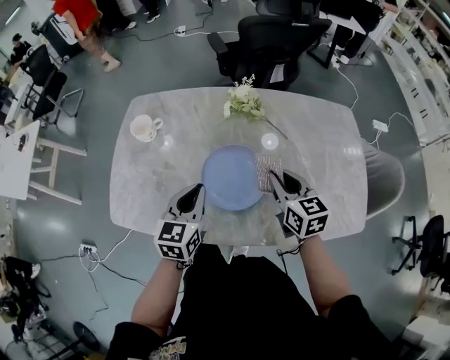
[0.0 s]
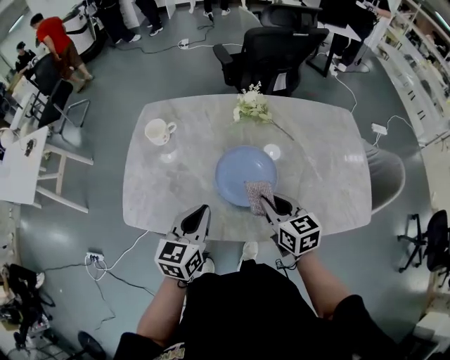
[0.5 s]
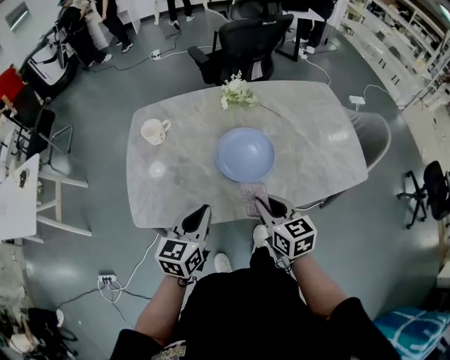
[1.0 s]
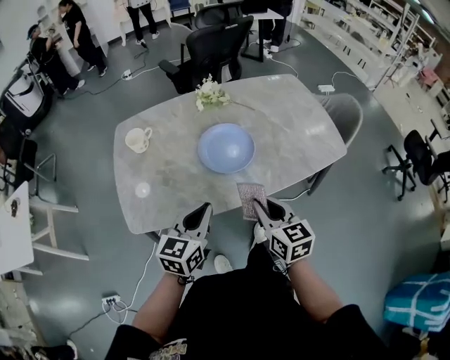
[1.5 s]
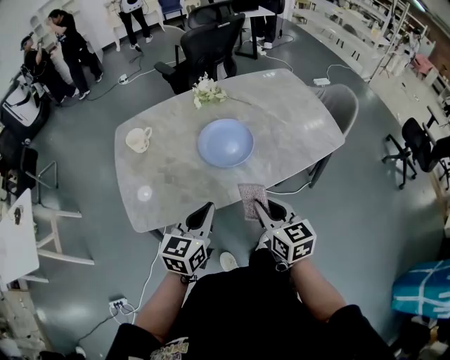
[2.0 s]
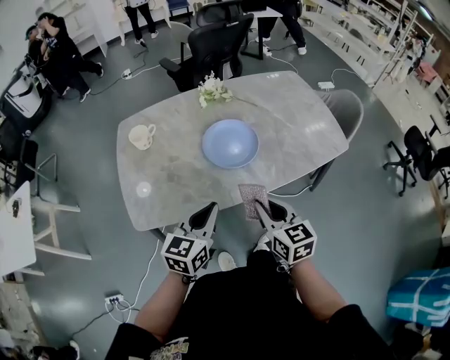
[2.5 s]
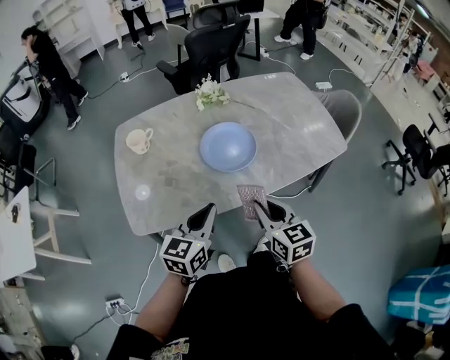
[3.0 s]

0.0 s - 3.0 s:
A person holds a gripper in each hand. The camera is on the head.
0.0 s - 1.5 s: The right gripper heads backward and to the left, covering approximately 30 cm, while the left gripper shifts approximately 20 cm backward, and changes its angle by approximately 30 degrees.
1.5 s - 3.0 s: The grippers move only a little.

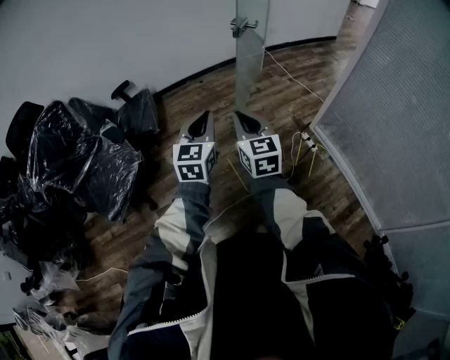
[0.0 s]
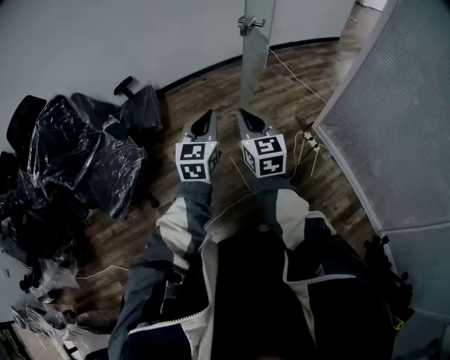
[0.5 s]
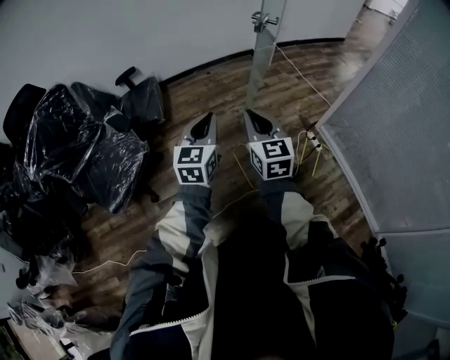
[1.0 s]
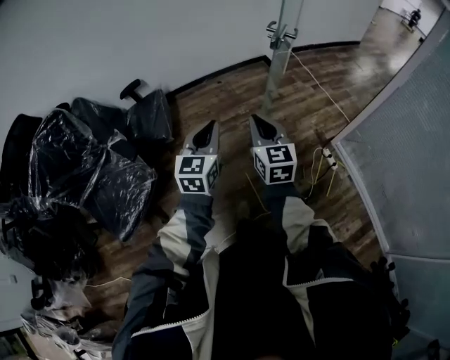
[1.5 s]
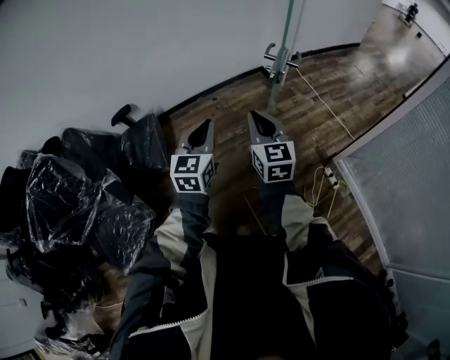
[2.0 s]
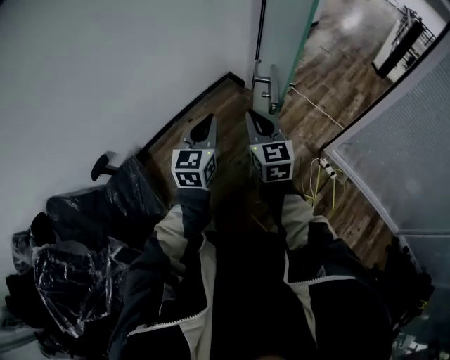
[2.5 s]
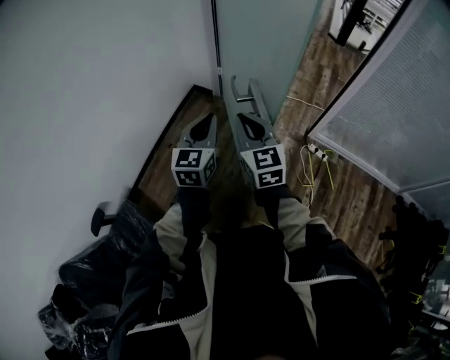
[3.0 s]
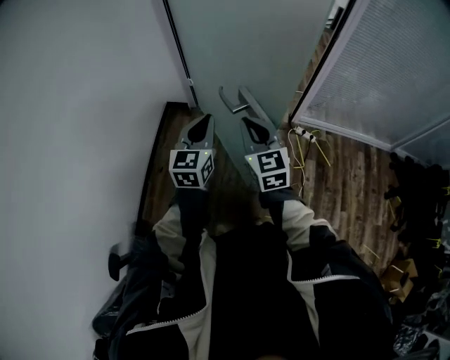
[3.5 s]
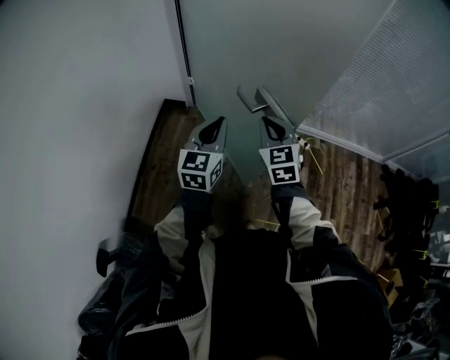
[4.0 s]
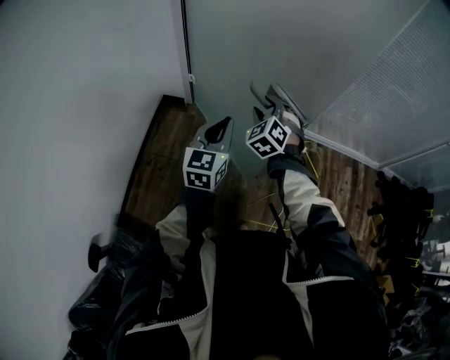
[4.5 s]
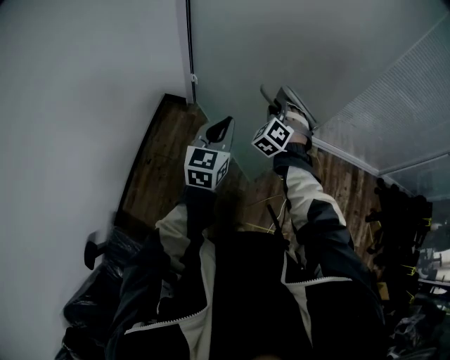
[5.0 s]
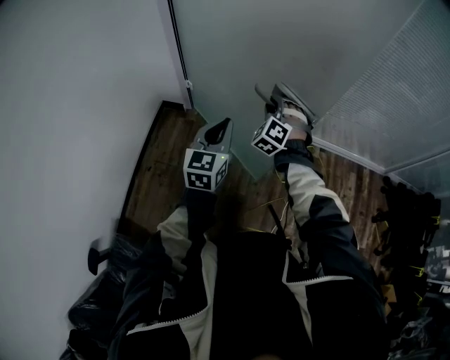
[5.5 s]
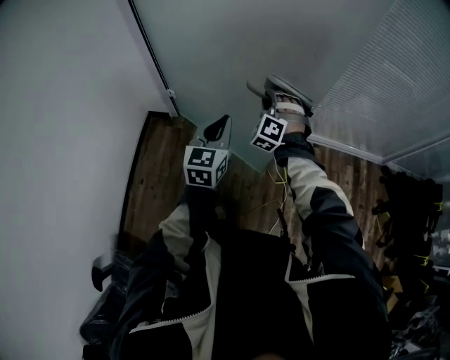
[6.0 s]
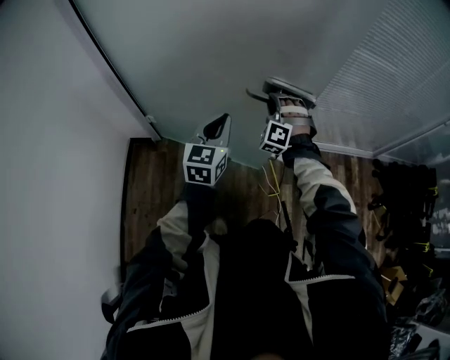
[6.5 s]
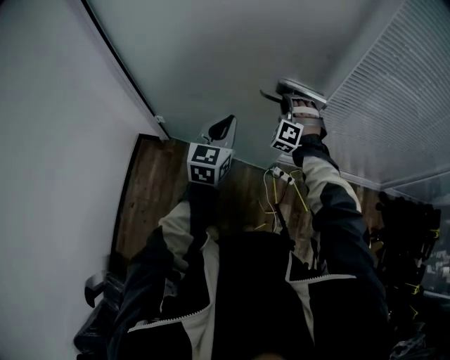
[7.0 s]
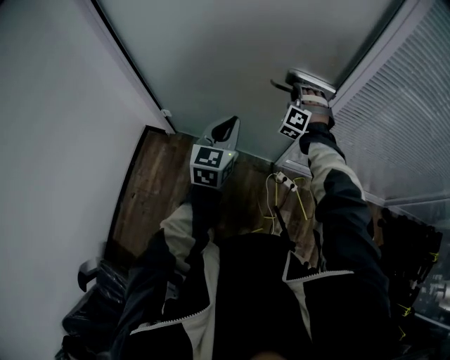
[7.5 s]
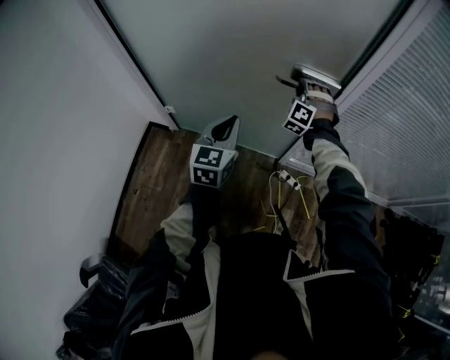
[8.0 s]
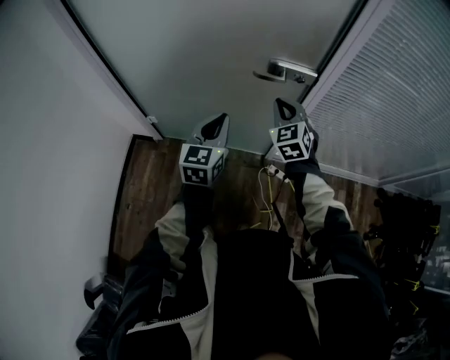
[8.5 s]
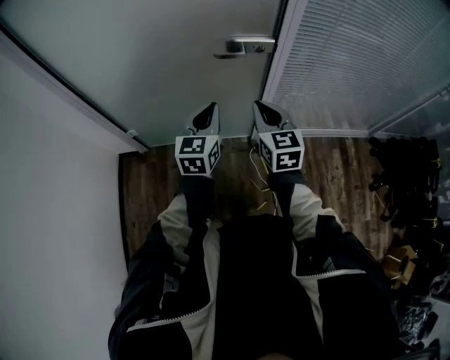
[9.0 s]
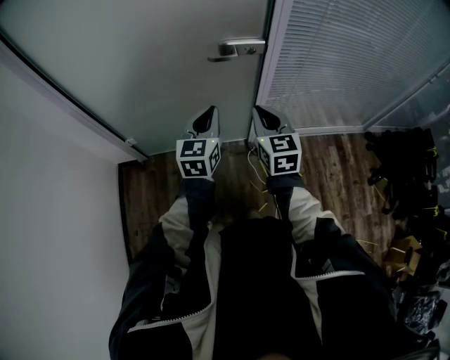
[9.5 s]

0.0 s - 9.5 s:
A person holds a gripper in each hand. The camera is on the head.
0.0 s - 2.0 s: The two grippers go some 35 cm forward.
2.0 s - 4.0 s: The right gripper shifts by roughly 25 cm, and changes its angle by some 50 degrees, while the left gripper shifts by some 35 cm, and rotates some 60 degrees.
4.0 s - 5.5 s: The right gripper moves forward, approximately 15 cm, rolls counterclockwise, seen from behind, by approximately 50 degrees, and opens, while the left gripper is displaced to the right and forward by some 10 cm.
5.5 s - 7.5 s: The two grippers go roughly 40 cm forward.
7.5 s - 9.5 s: The left gripper travels to the right by roughly 5 cm, while the right gripper shifts about 25 cm backward, rotates around the line of its fingers by about 90 degrees, clockwise from behind, and closes up.

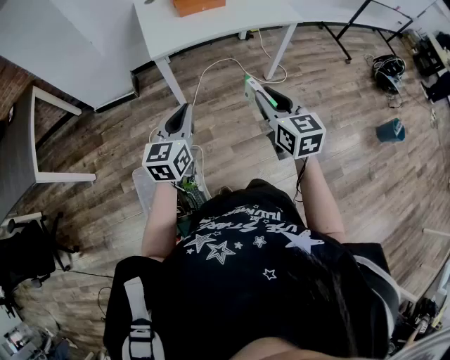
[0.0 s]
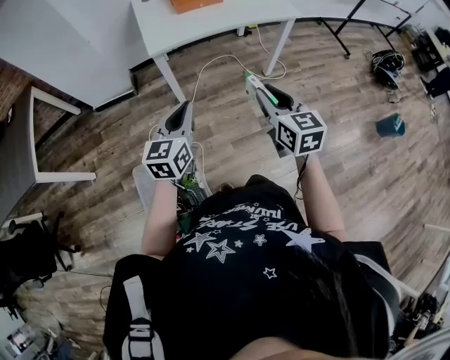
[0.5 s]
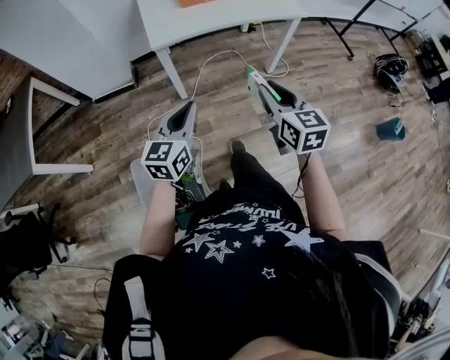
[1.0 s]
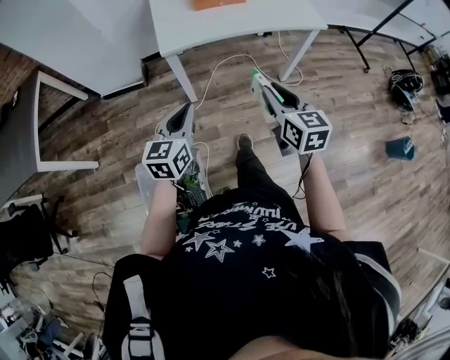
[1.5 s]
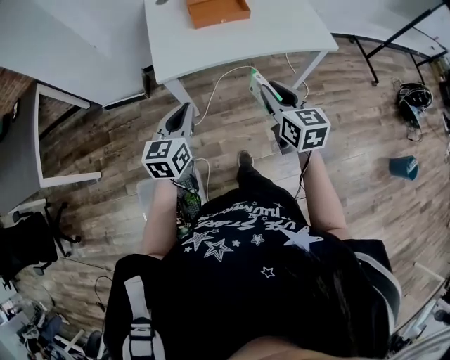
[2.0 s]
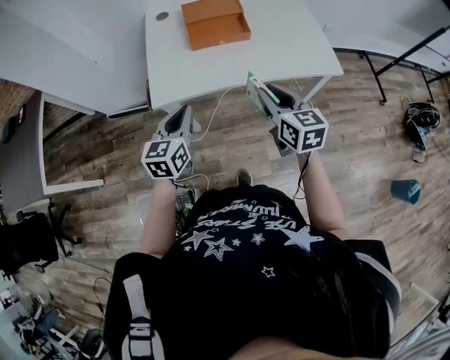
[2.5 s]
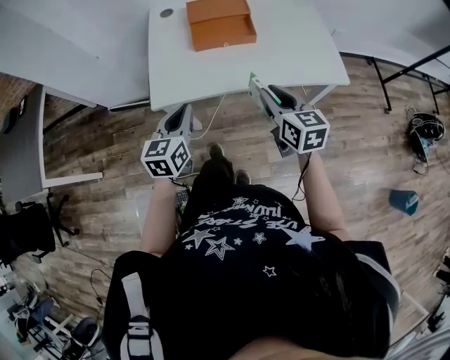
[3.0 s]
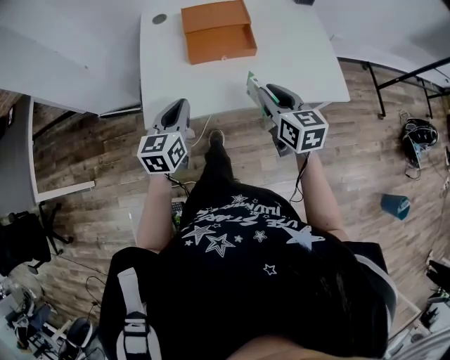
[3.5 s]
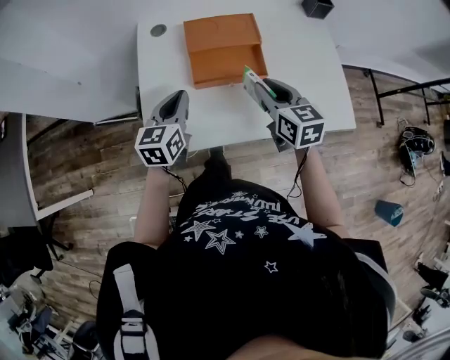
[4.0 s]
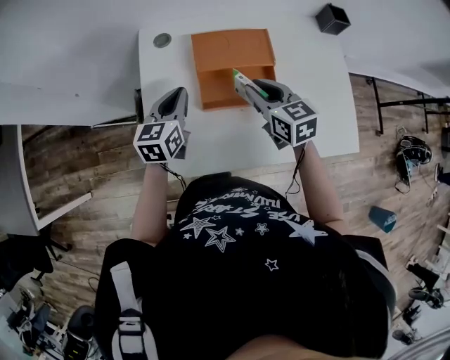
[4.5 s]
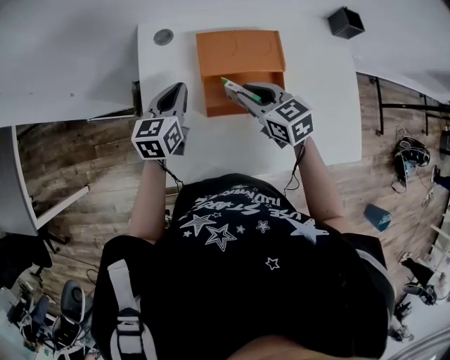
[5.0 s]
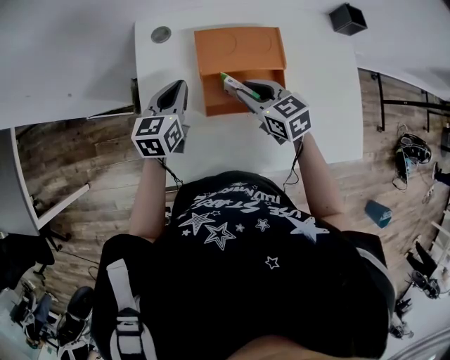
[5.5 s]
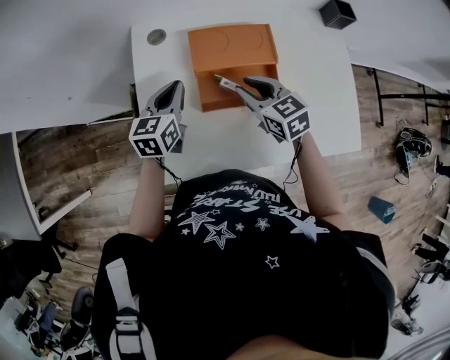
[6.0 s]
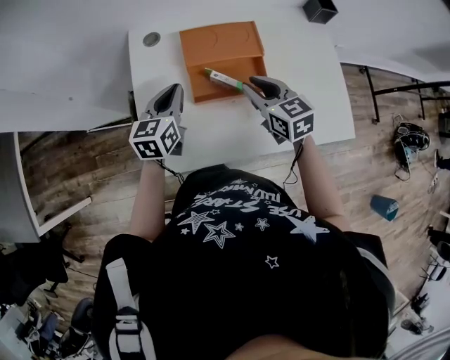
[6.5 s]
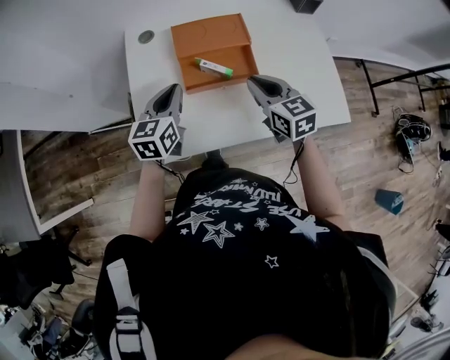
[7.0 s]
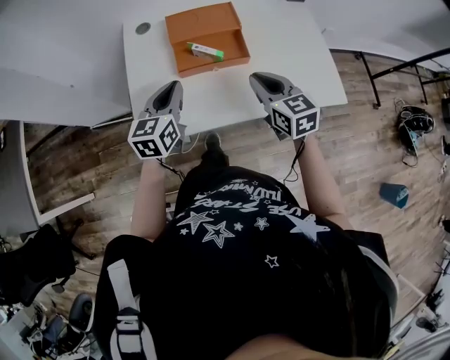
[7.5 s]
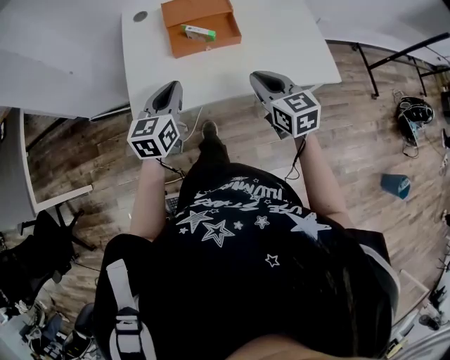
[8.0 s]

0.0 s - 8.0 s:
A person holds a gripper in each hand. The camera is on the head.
0.0 s - 2.0 s: The grippers both shift forward by about 25 cm.
2.0 s - 4.0 s: The two grippers travel together, forward, roughly 40 cm.
4.0 s - 6.0 s: The right gripper is displaced forward and to the left by about 15 cm, and changes its angle by approximately 20 degrees. Meanwhile the left gripper is displaced forward by about 15 cm.
6.0 s - 8.0 s: The two grippers go some 30 cm backward.

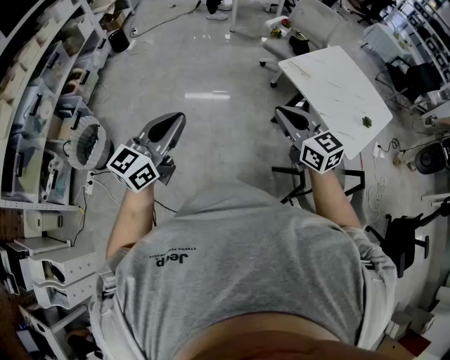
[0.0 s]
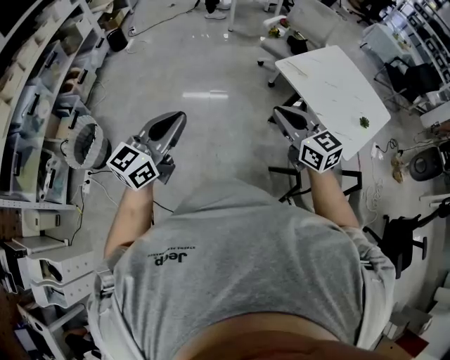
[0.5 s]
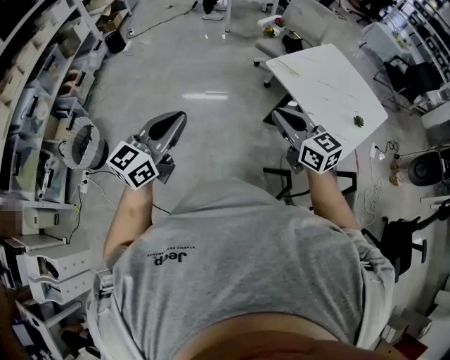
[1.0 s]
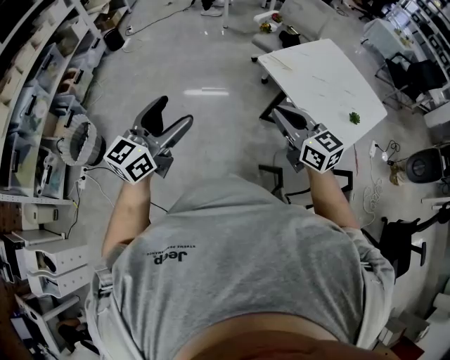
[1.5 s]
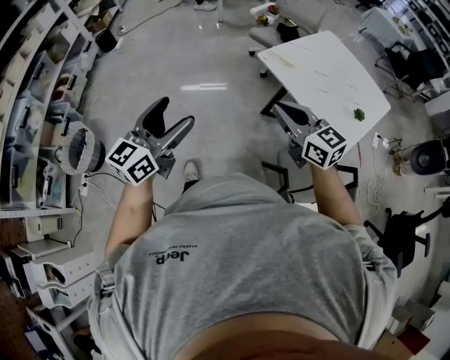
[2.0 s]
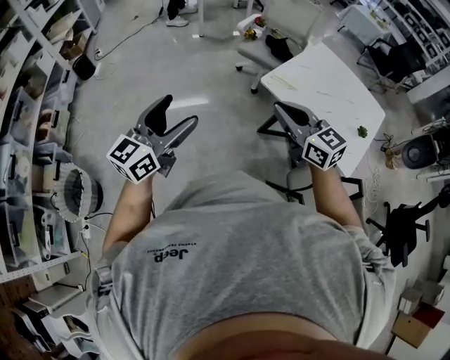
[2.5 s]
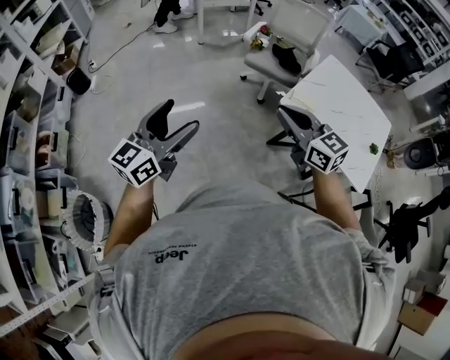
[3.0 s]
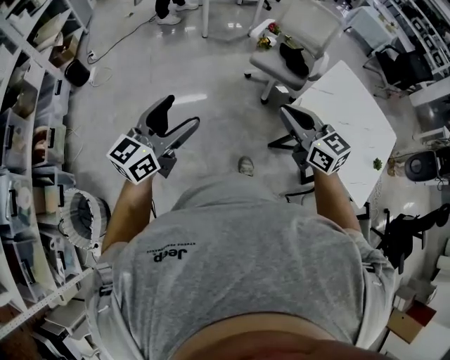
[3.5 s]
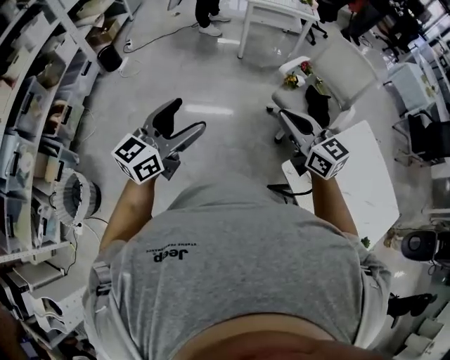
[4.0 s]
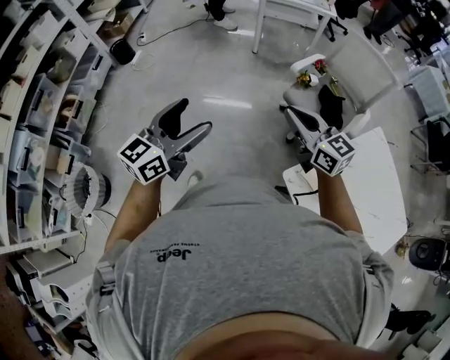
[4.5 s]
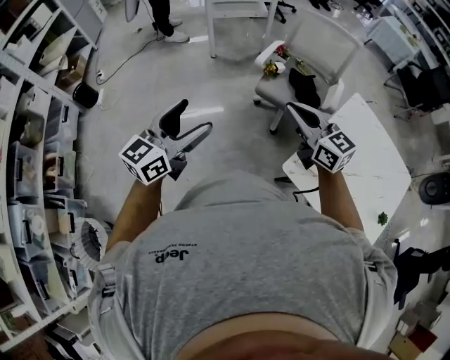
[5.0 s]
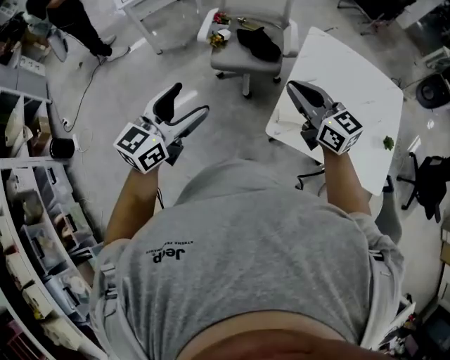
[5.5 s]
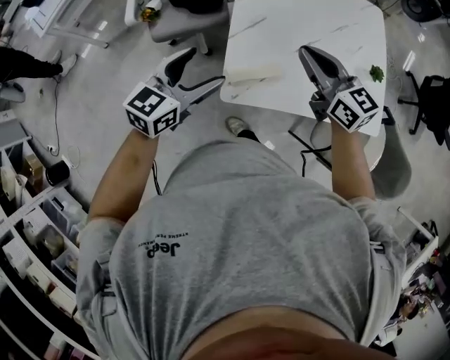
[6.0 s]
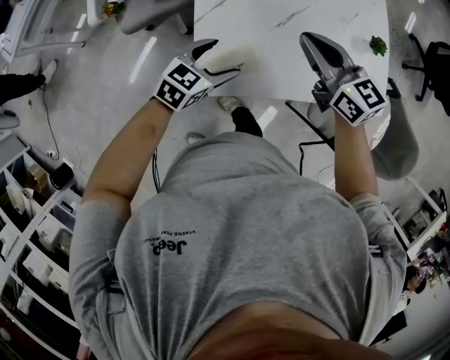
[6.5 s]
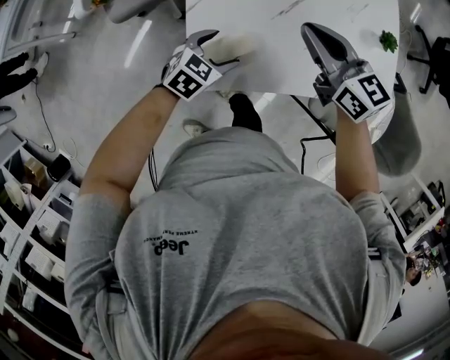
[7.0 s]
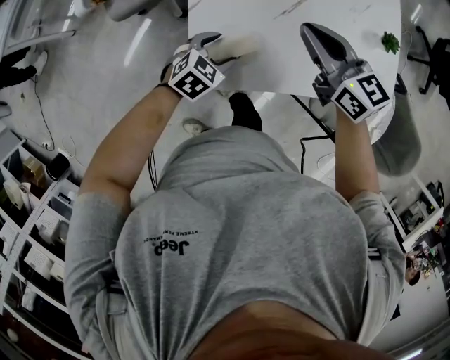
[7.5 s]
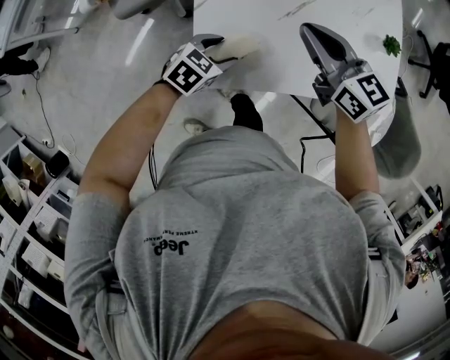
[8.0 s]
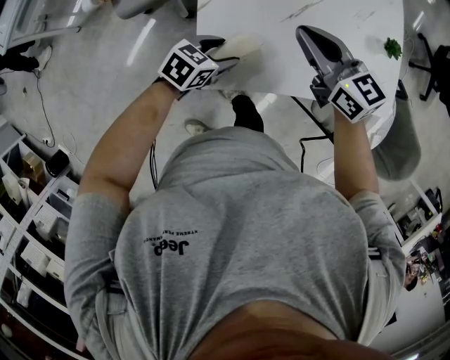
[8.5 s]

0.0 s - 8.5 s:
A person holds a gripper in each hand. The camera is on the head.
0.0 s - 2.0 s: The right gripper moves to the right, about 10 cm. The left gripper is displaced to the right and forward by some 15 cm, and opens its fingers.
2.0 s - 4.0 s: The two grippers travel together, forward, roughly 60 cm.
4.0 s - 6.5 s: The pair of grippers is taken approximately 50 cm. The right gripper swivels some 60 degrees. The left gripper tips its fingers downward by about 40 degrees.
6.5 s - 8.5 s: The left gripper is displaced downward by approximately 5 cm.
